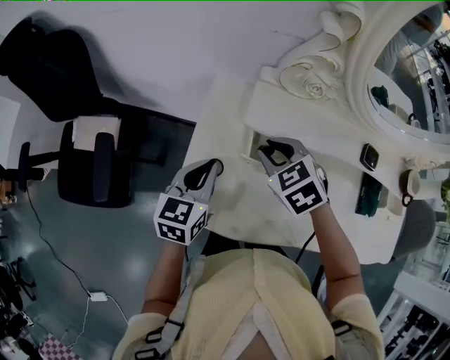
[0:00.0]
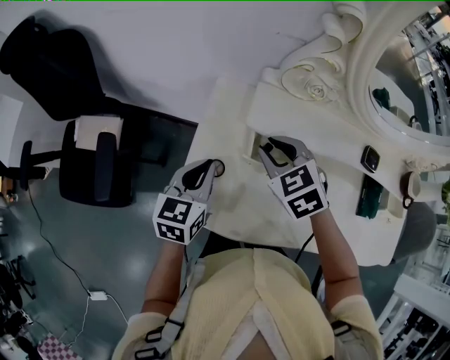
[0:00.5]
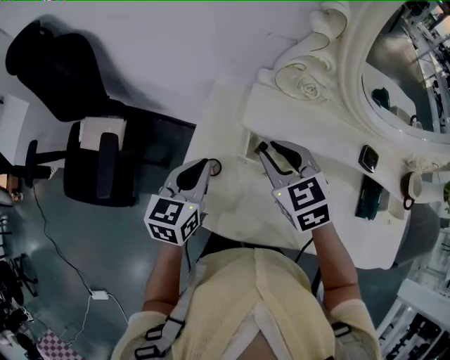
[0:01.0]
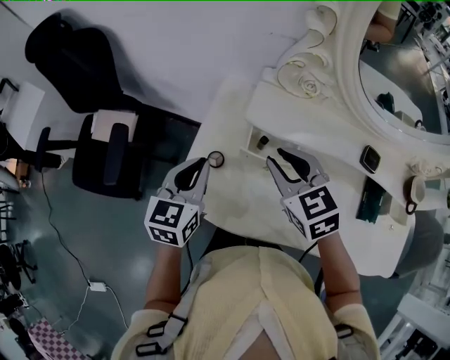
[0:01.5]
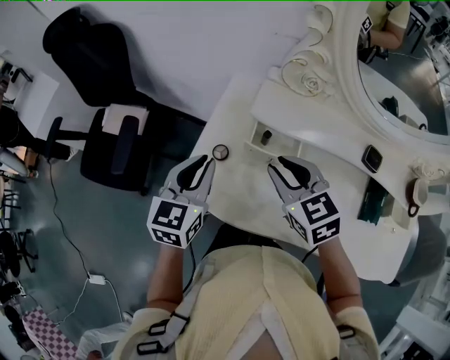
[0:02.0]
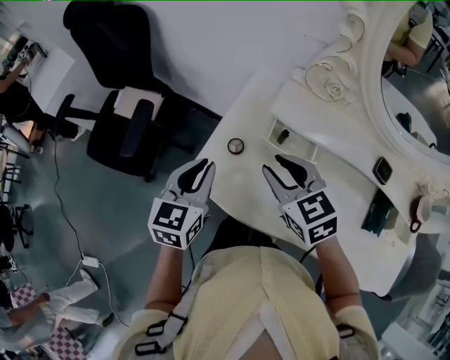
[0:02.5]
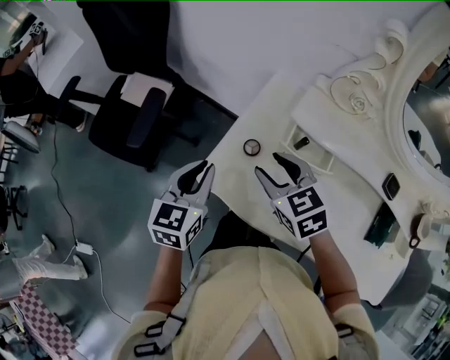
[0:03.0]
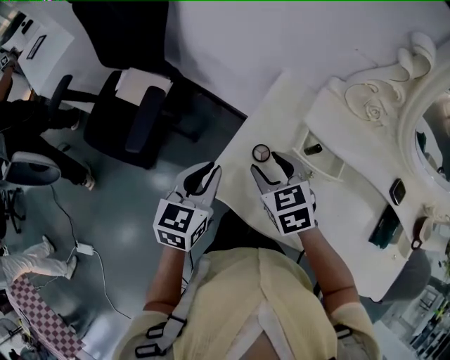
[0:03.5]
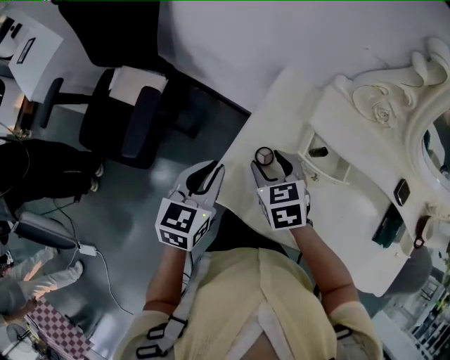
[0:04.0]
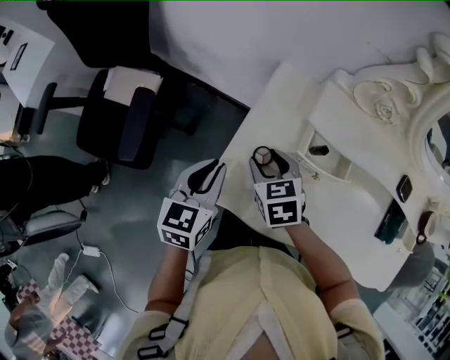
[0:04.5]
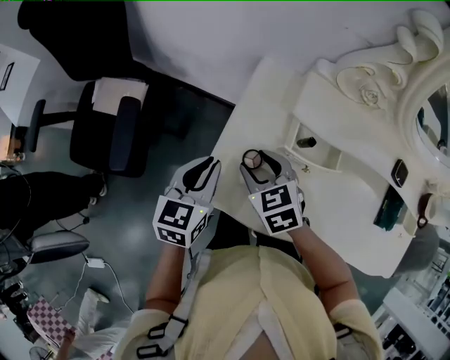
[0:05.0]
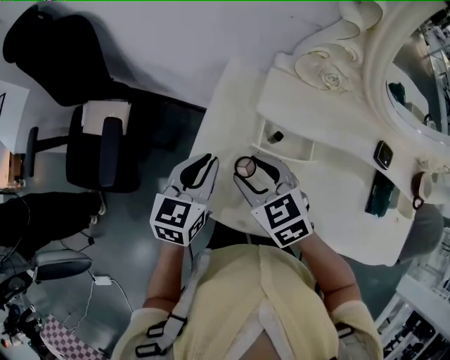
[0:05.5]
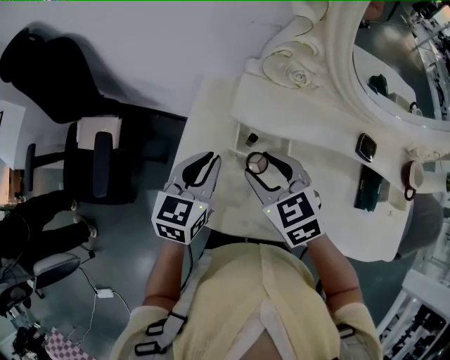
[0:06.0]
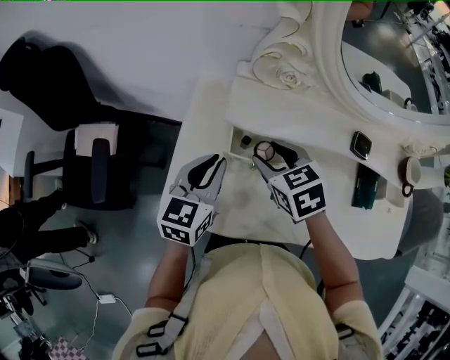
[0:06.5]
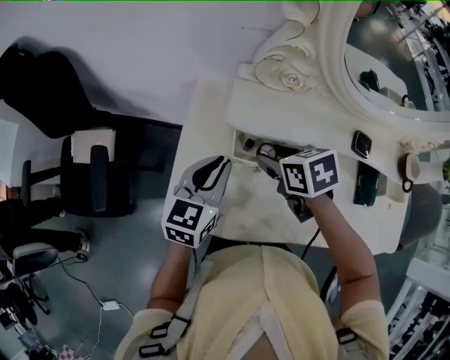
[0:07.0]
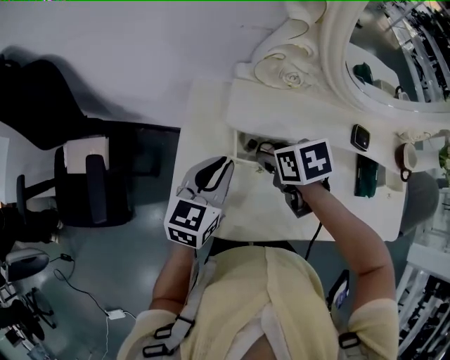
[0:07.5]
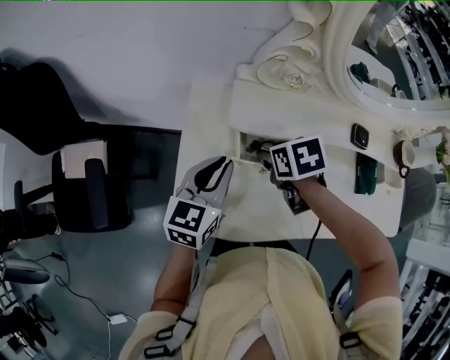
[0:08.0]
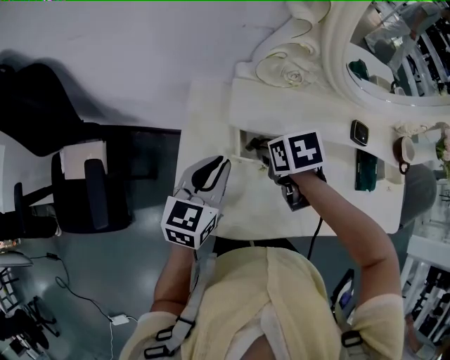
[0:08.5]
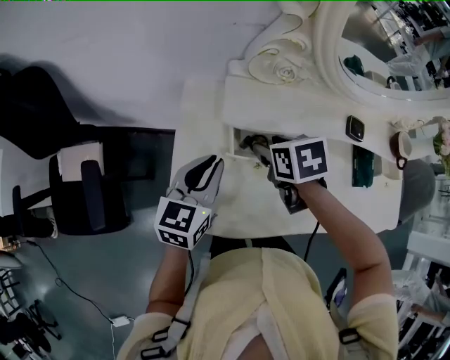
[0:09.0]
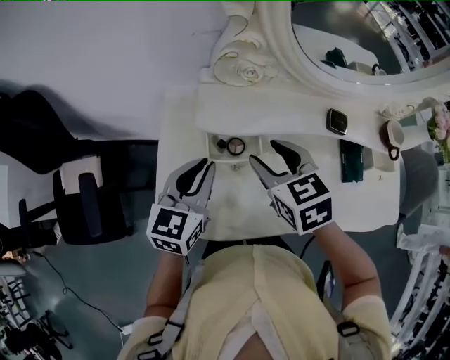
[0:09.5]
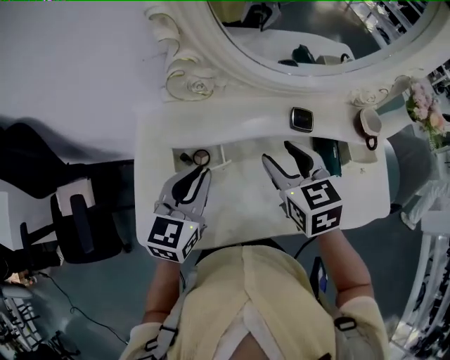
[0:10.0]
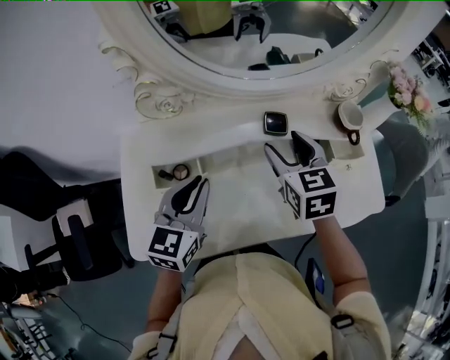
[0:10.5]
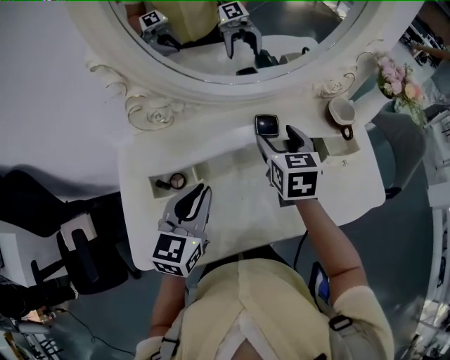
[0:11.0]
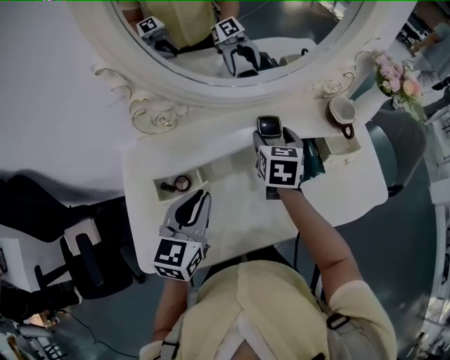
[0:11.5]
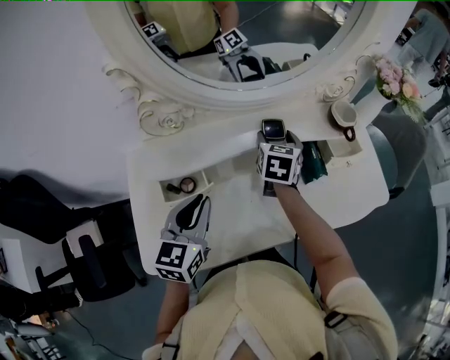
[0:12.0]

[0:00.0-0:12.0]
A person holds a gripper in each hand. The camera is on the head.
0:00.0 to 0:02.0: The right gripper heads backward and upward, covering some 10 cm, and rotates approximately 20 degrees. The left gripper is displaced upward and backward by about 10 cm.
0:02.0 to 0:04.0: The right gripper travels to the left, downward and forward by roughly 20 cm, and opens. The left gripper goes approximately 15 cm to the left and downward.
0:04.0 to 0:06.0: The left gripper shifts some 15 cm to the right, while the right gripper goes approximately 15 cm to the right and upward.
0:06.0 to 0:08.0: The right gripper travels downward and forward by roughly 10 cm, and turns by approximately 40 degrees.
0:08.0 to 0:10.0: The right gripper moves to the right and upward, approximately 20 cm, and angles its fingers upward, by roughly 30 degrees; the left gripper moves to the right and upward, about 15 cm.
0:10.0 to 0:12.0: The right gripper moves forward, to the right and downward, some 20 cm, and swivels approximately 40 degrees.

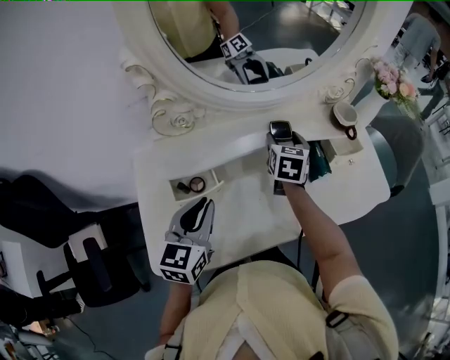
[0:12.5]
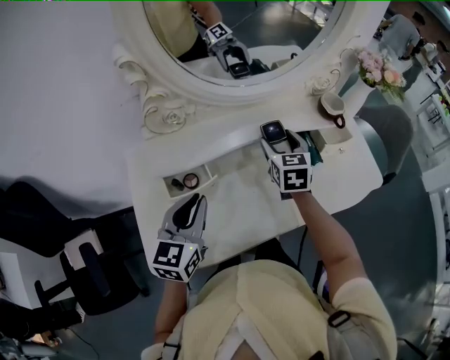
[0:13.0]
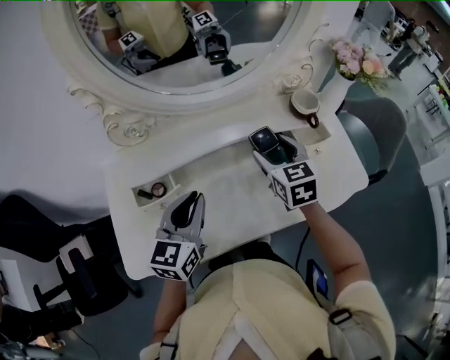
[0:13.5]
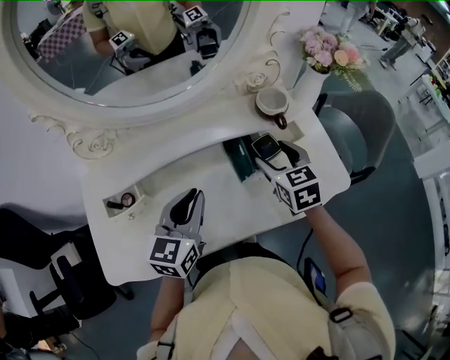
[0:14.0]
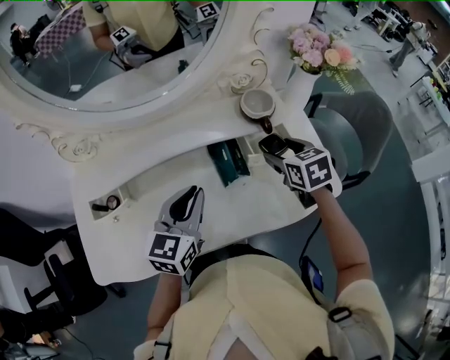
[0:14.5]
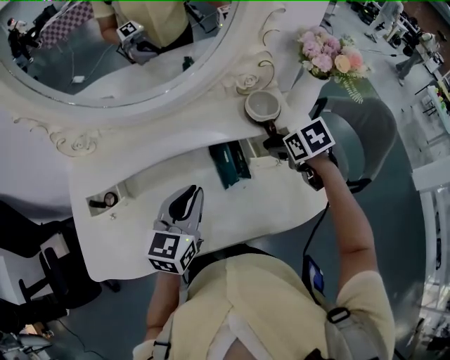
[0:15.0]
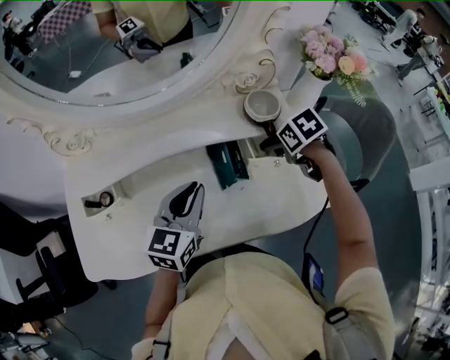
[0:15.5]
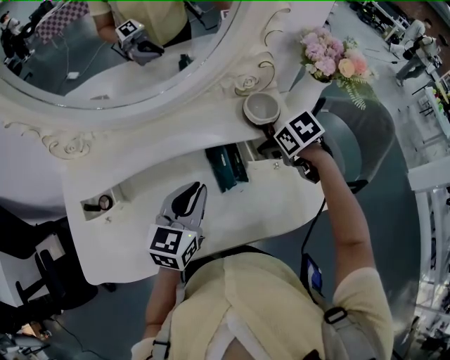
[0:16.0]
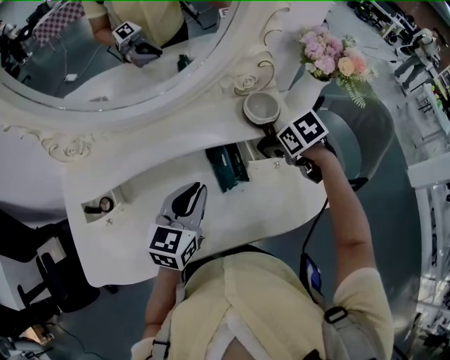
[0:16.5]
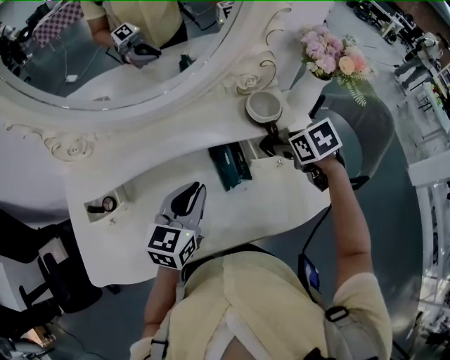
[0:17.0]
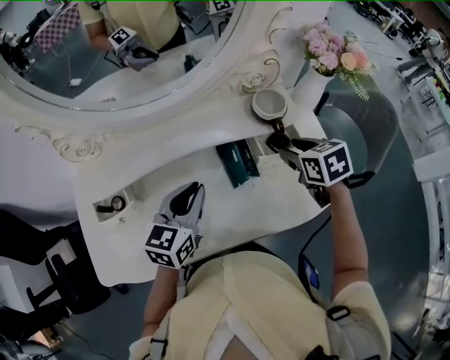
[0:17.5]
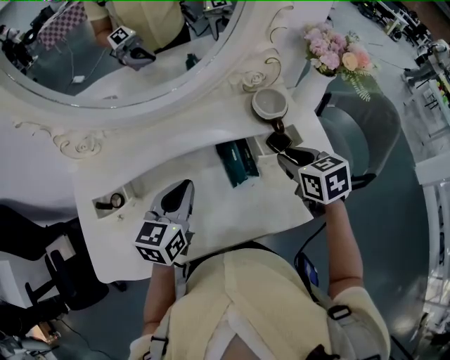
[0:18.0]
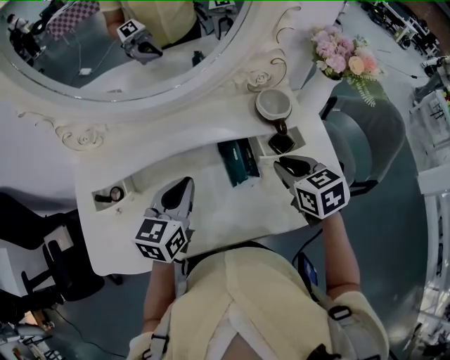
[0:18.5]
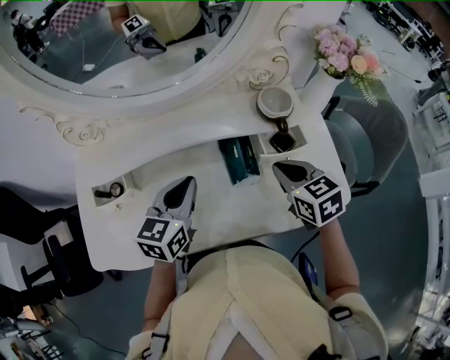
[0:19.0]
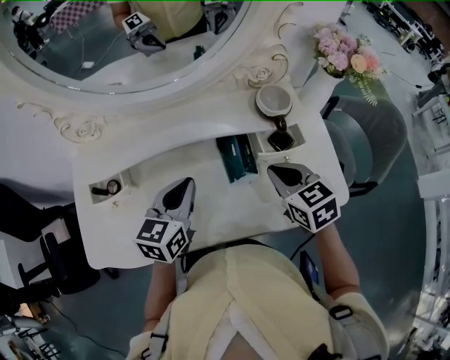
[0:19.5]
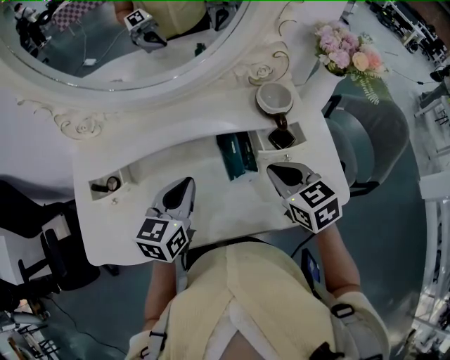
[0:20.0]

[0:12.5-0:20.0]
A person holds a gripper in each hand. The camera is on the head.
0:12.5 to 0:14.5: Both grippers travel together to the right, about 25 cm. The right gripper swivels approximately 30 degrees.
0:14.5 to 0:16.5: The right gripper moves about 5 cm, and rotates some 30 degrees.
0:16.5 to 0:18.0: The right gripper travels backward and upward by roughly 10 cm, swivels roughly 30 degrees, and closes up. The left gripper goes some 5 cm to the left.
0:18.0 to 0:20.0: The right gripper moves some 5 cm.

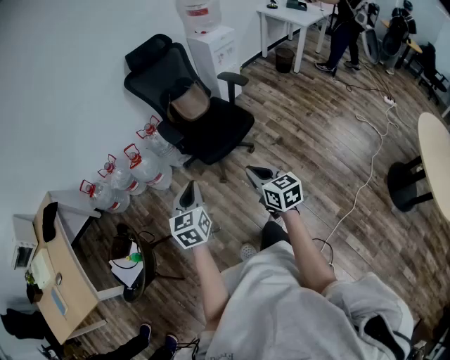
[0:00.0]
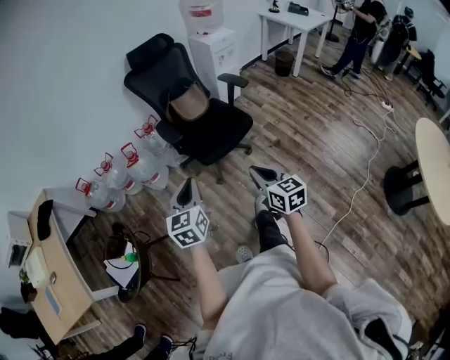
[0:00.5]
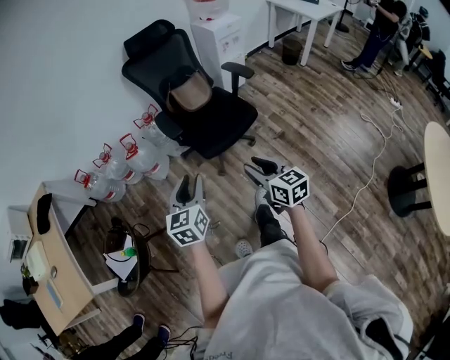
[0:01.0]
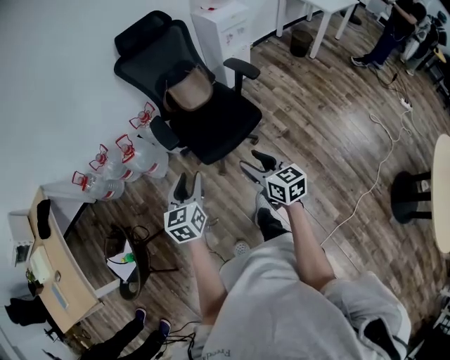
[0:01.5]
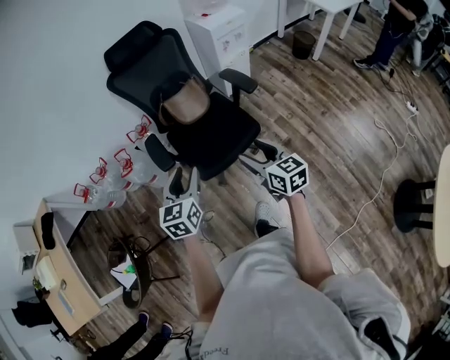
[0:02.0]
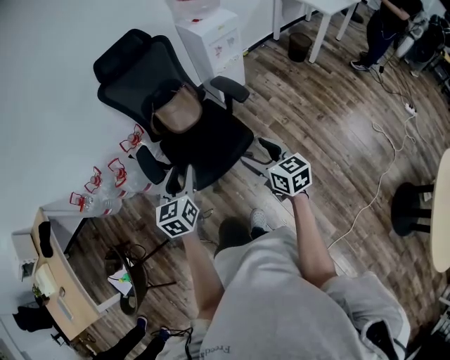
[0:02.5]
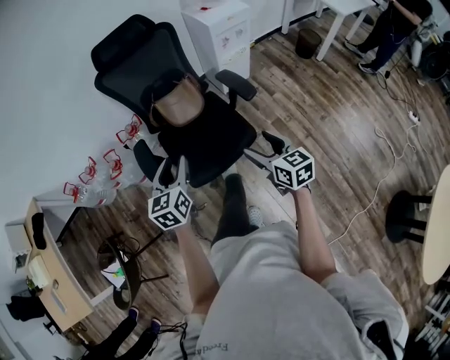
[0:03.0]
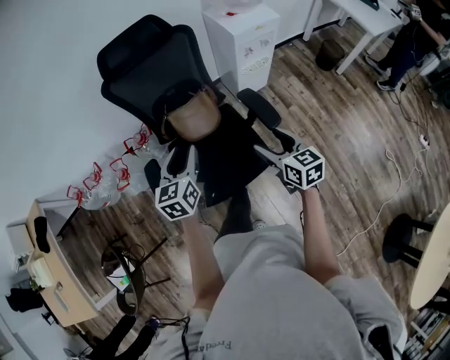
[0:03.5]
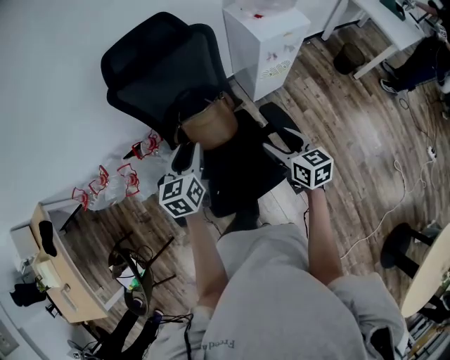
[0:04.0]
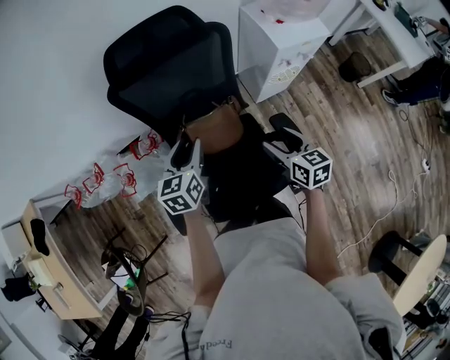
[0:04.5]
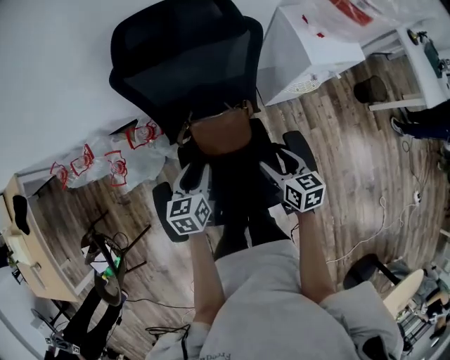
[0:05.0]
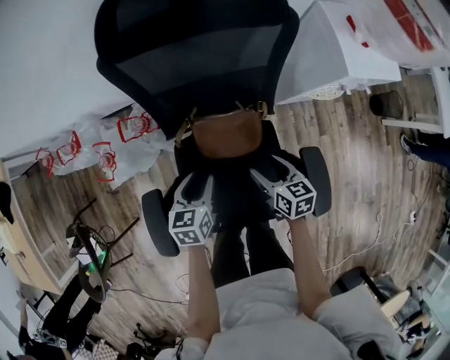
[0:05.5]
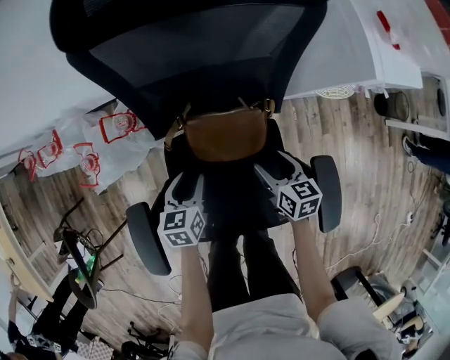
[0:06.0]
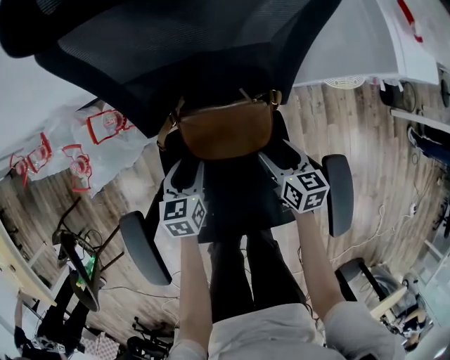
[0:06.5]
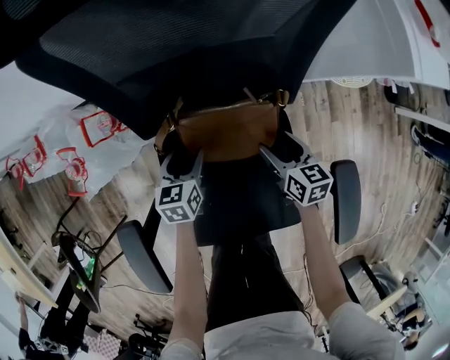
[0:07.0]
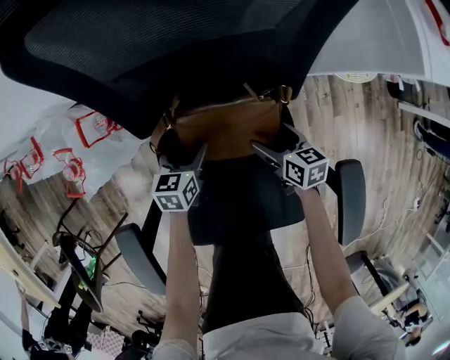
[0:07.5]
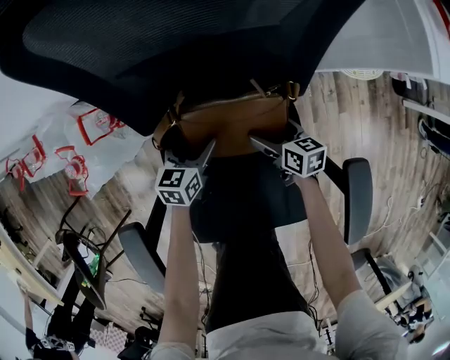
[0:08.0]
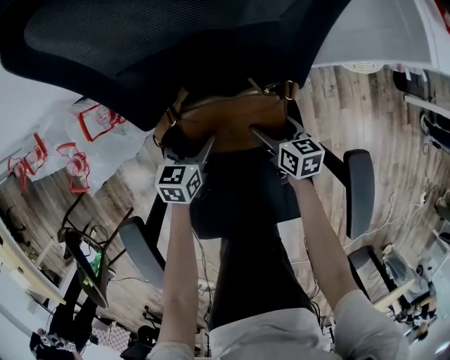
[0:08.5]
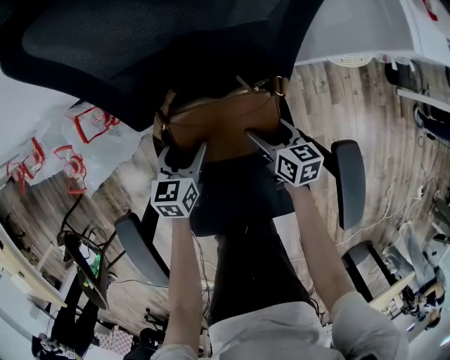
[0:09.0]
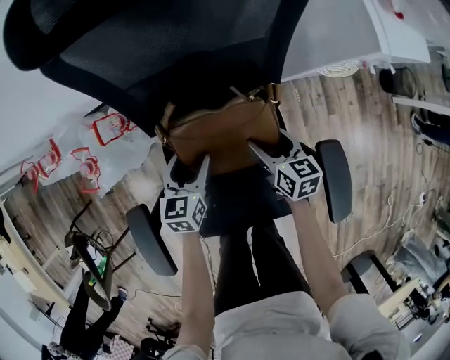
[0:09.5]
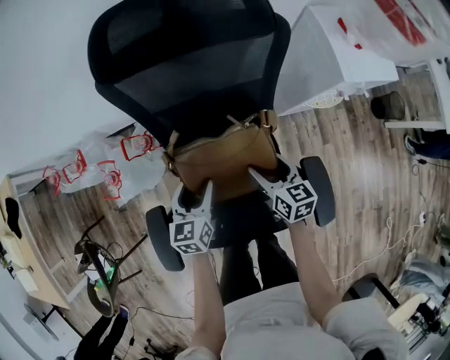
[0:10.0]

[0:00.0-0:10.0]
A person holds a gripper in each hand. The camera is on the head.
0:00.0 to 0:02.0: Both grippers move forward and to the right, roughly 30 cm. The right gripper opens its fingers. Meanwhile the left gripper opens its fingers.
0:02.0 to 0:04.0: Both grippers are carried forward, roughly 40 cm.
0:04.0 to 0:06.0: The right gripper travels downward and forward by some 35 cm, while the left gripper goes some 35 cm downward, and swivels some 20 degrees.
0:06.0 to 0:08.0: The left gripper travels downward and forward by about 15 cm, and opens its fingers. The right gripper moves downward, roughly 15 cm, and opens.
0:08.0 to 0:10.0: Both grippers travel together upward, some 25 cm. The right gripper closes.
